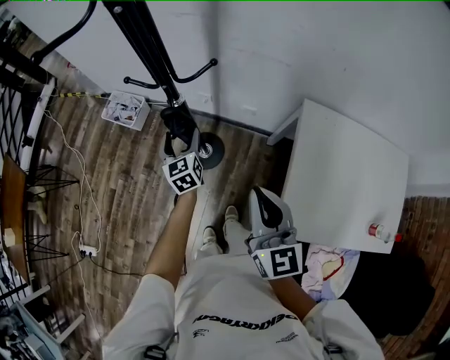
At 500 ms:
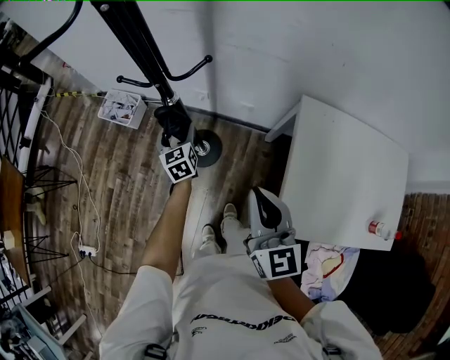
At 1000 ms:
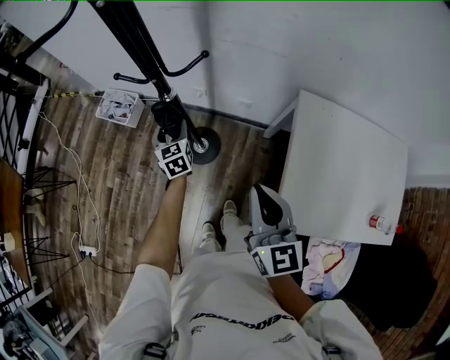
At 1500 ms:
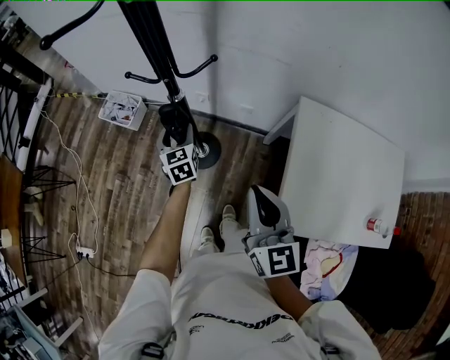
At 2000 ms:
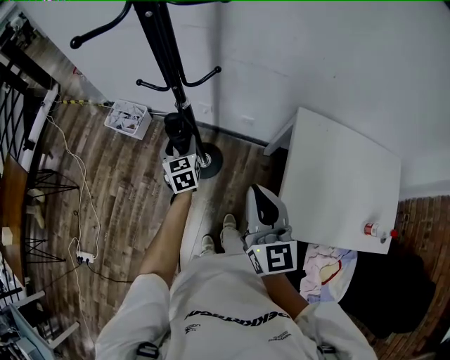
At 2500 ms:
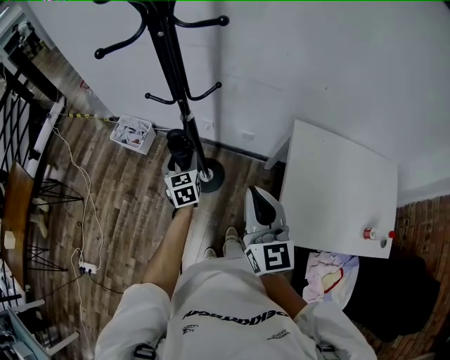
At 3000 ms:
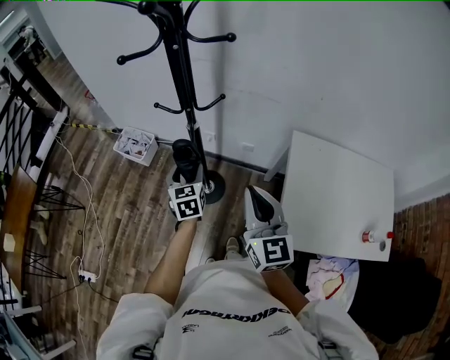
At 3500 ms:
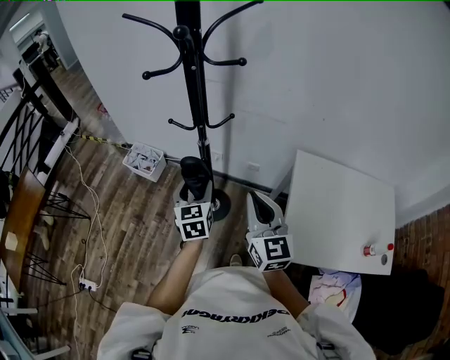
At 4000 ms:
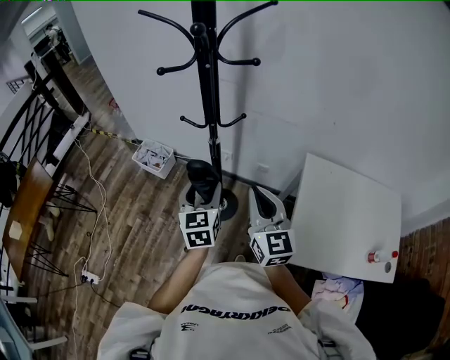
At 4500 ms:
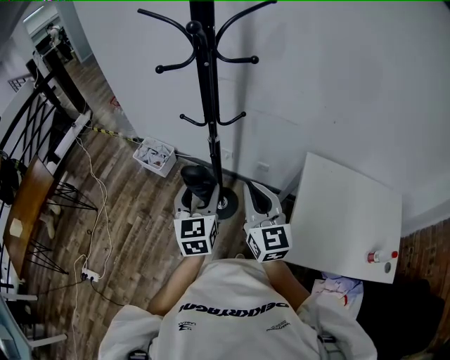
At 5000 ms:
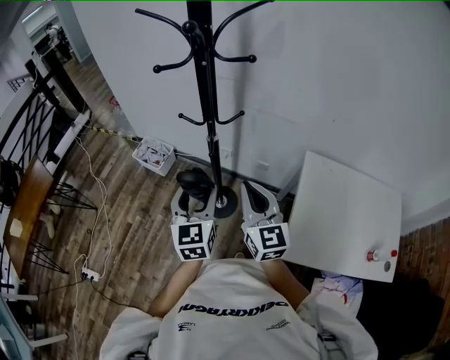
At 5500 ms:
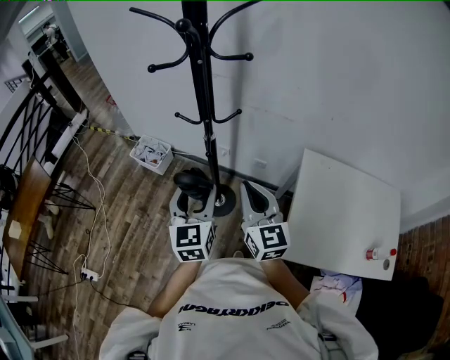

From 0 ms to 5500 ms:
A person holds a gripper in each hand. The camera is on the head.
From 0 ms to 2000 ms: There are only small adjustments of the grippers.
From 2000 ms to 3500 ms: The right gripper heads upward, covering roughly 5 cm; the left gripper shifts roughly 20 cm upward and backward.
From 3500 ms to 5500 ms: The left gripper shifts about 10 cm upward and backward.

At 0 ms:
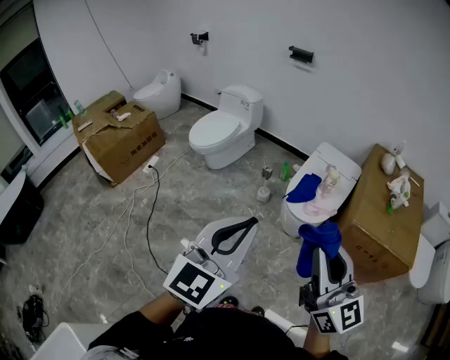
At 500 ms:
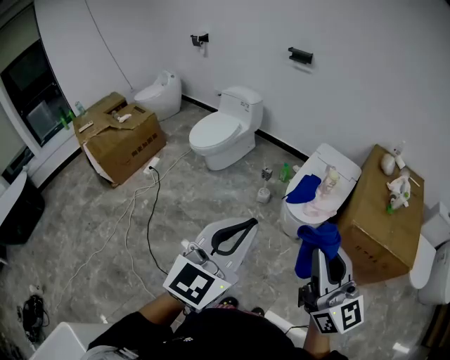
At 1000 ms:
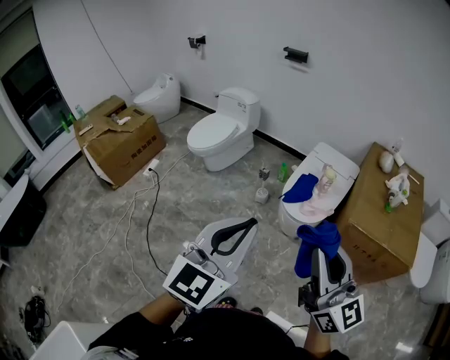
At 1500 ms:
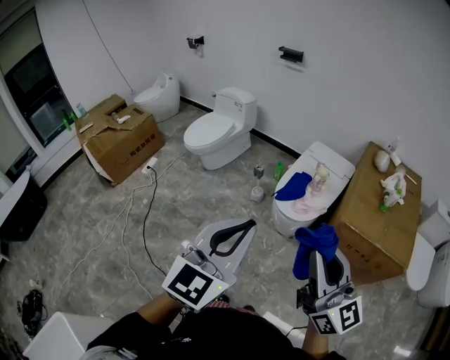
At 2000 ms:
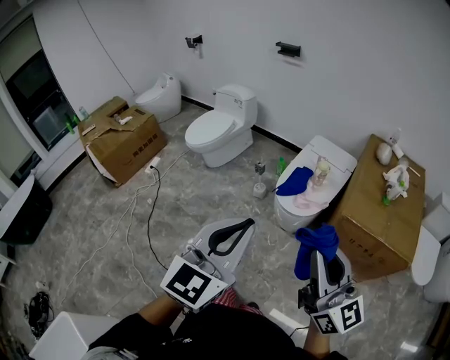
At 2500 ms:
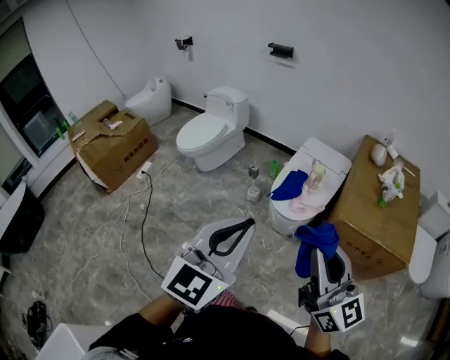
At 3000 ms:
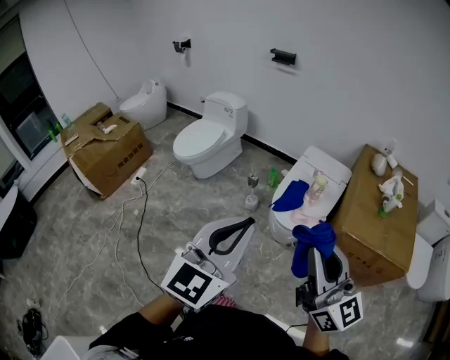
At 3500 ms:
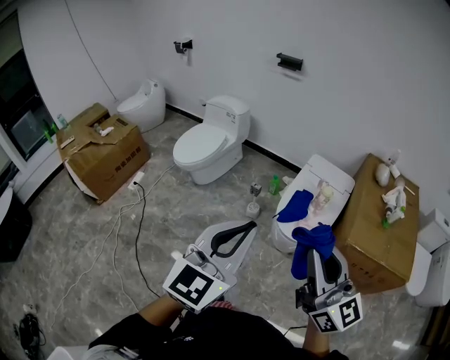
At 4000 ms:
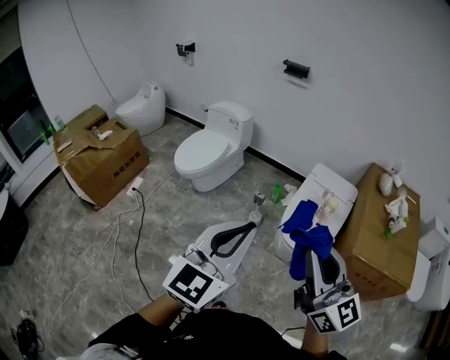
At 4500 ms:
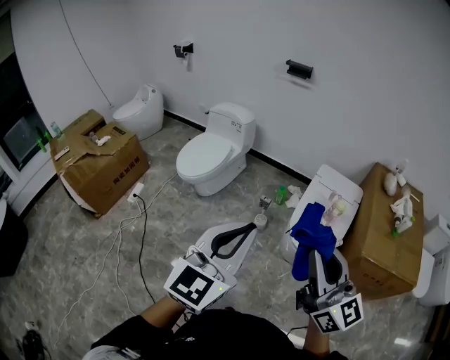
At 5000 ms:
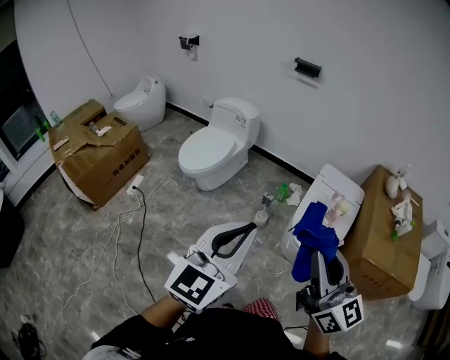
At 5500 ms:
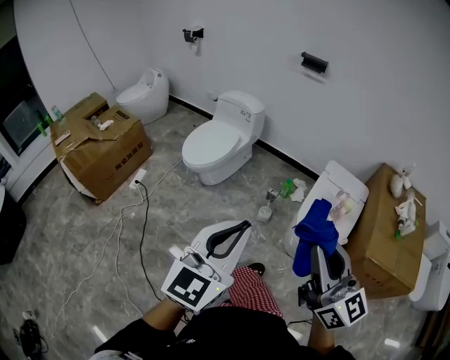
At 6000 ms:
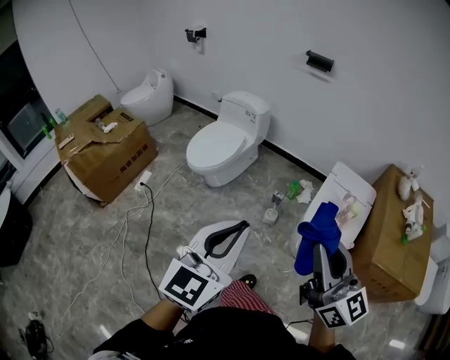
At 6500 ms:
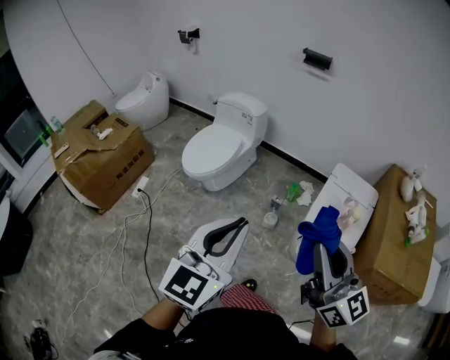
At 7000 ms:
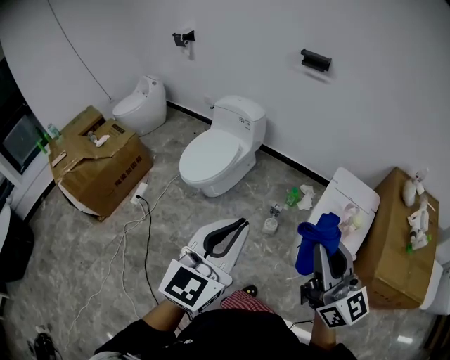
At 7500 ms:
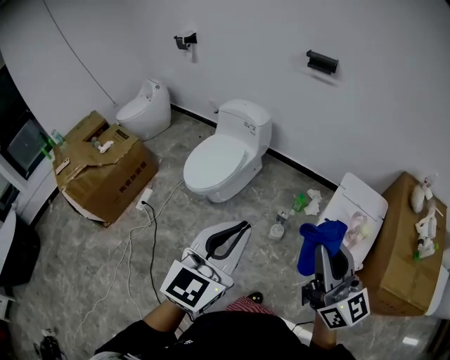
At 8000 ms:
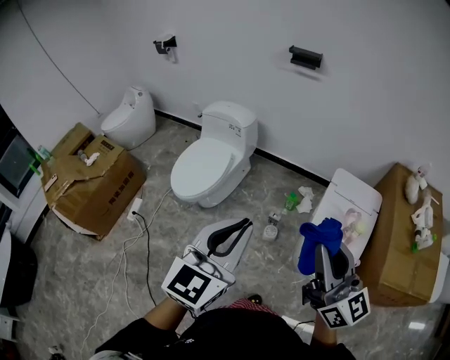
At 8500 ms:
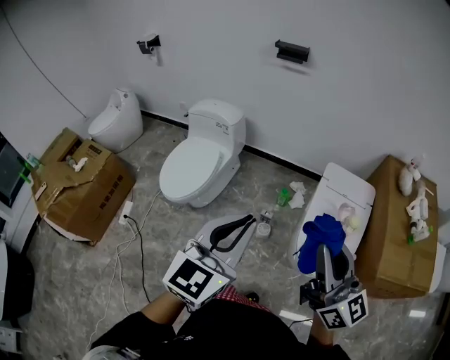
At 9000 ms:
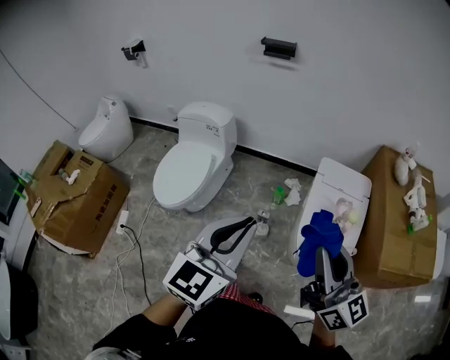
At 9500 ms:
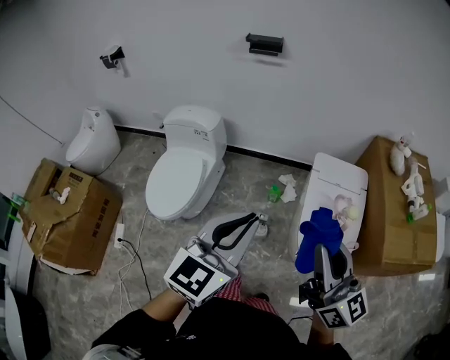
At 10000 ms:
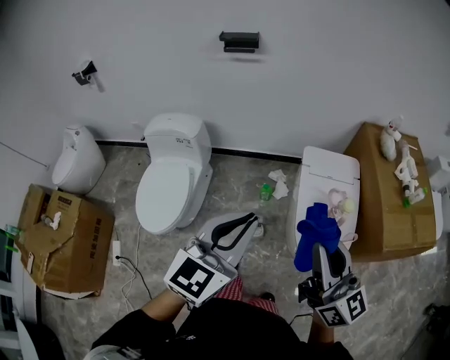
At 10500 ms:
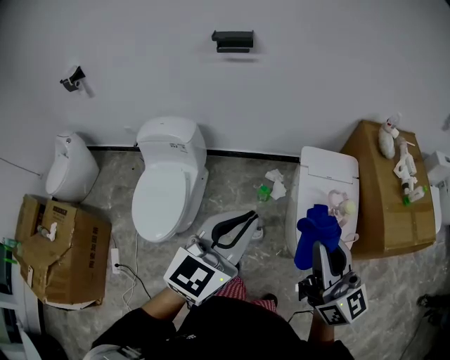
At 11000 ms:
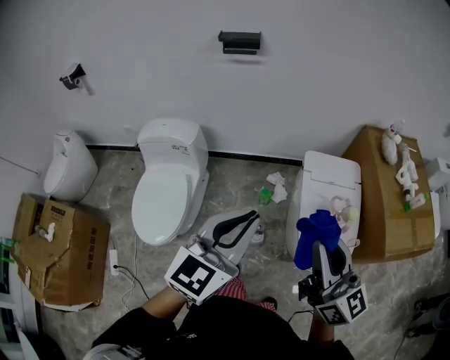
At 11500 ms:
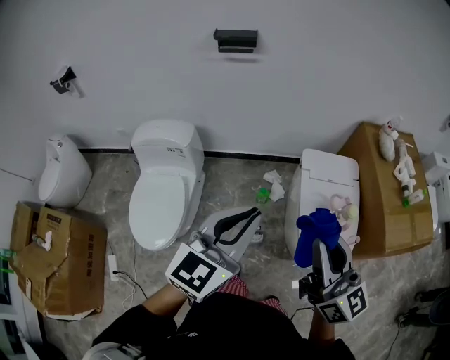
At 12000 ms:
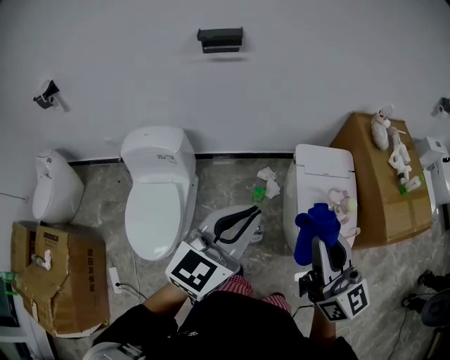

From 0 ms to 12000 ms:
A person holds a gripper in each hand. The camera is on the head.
From 0 ms to 2000 ms: The two grippers go about 10 cm to the right.
From 2000 ms to 4000 ms: The left gripper heads forward and to the left, covering some 25 cm. The right gripper moves to the left and forward, some 25 cm.
From 4000 ms to 6000 ms: Both grippers move to the left and forward, roughly 15 cm.
From 6000 ms to 8000 ms: Both grippers travel together forward, about 20 cm.
From 8000 ms to 10000 ms: The left gripper moves forward, some 15 cm, and changes its angle by roughly 30 degrees; the right gripper moves forward, approximately 10 cm, and changes its angle by roughly 20 degrees.
From 10000 ms to 12000 ms: The grippers both shift forward and to the left by approximately 10 cm.

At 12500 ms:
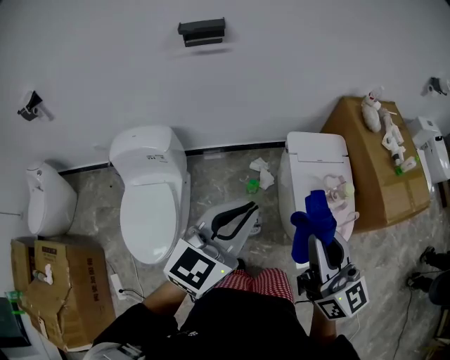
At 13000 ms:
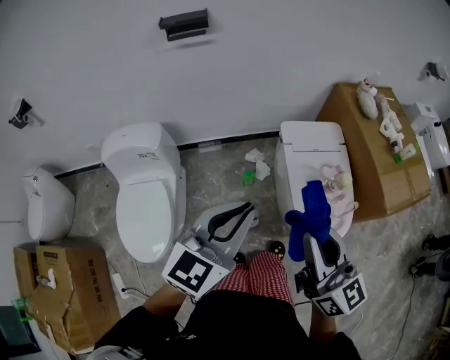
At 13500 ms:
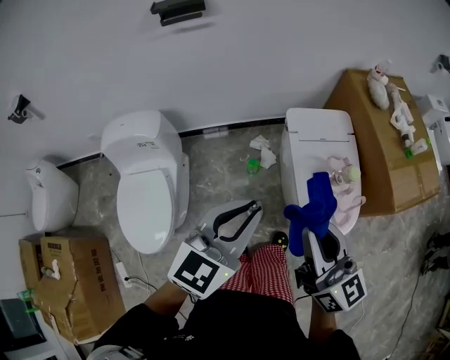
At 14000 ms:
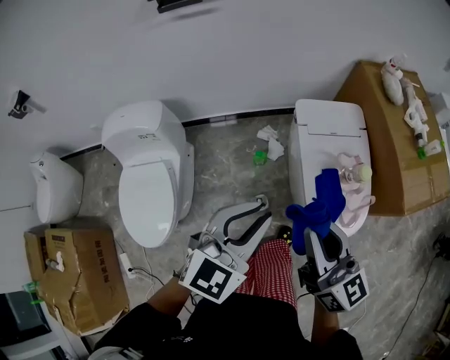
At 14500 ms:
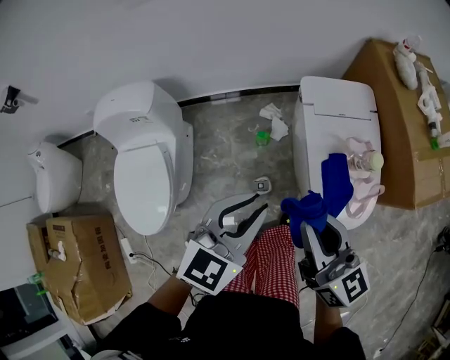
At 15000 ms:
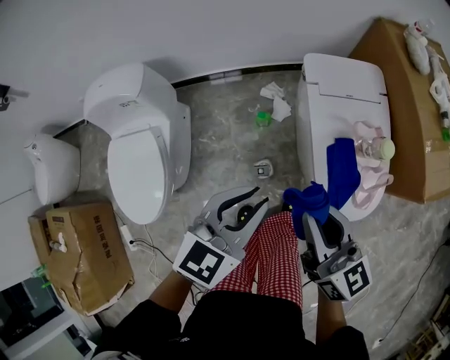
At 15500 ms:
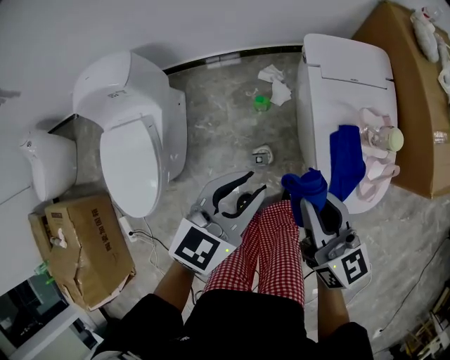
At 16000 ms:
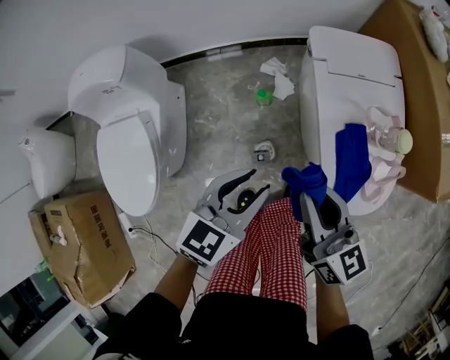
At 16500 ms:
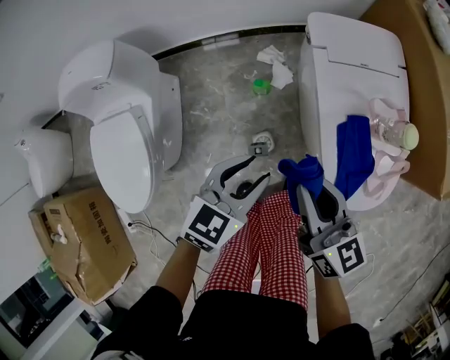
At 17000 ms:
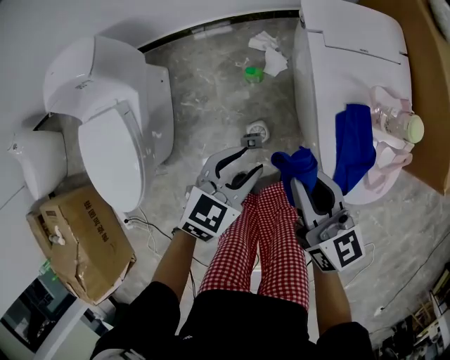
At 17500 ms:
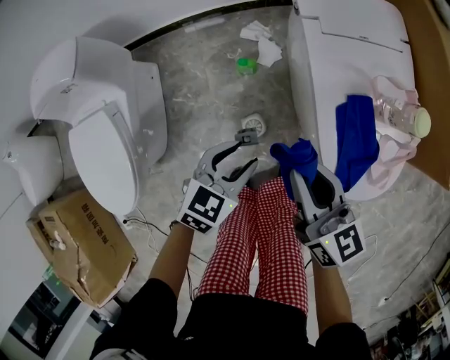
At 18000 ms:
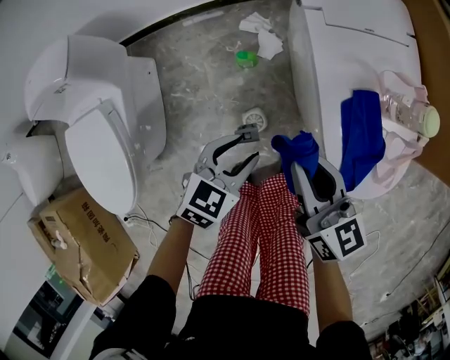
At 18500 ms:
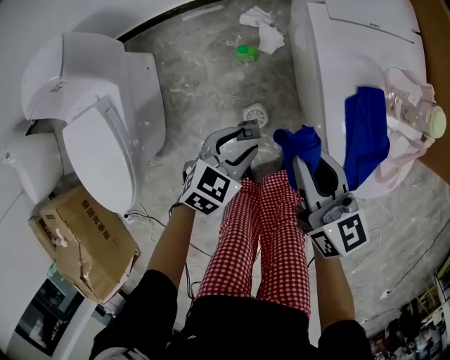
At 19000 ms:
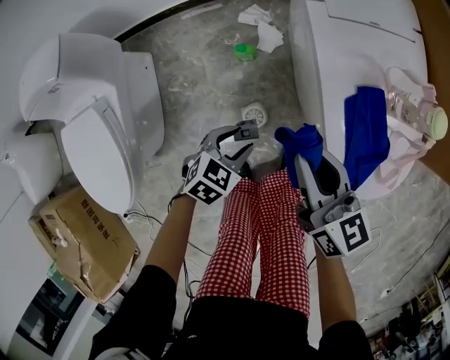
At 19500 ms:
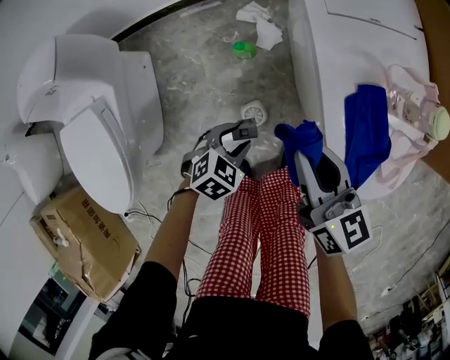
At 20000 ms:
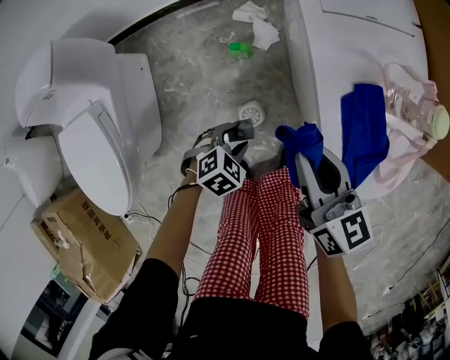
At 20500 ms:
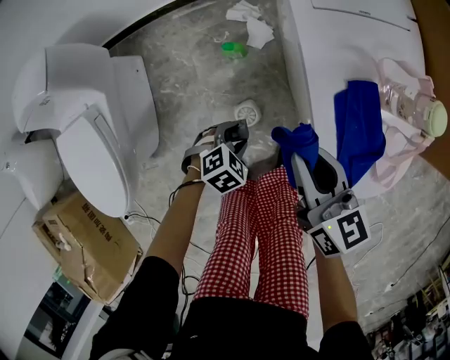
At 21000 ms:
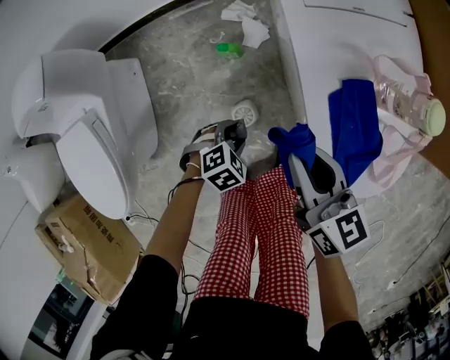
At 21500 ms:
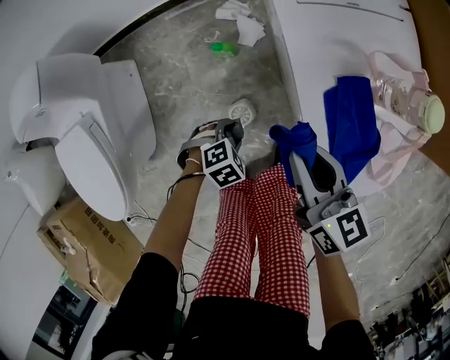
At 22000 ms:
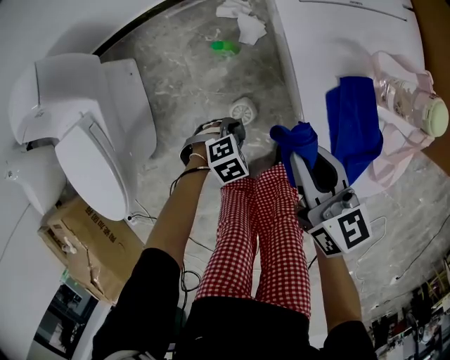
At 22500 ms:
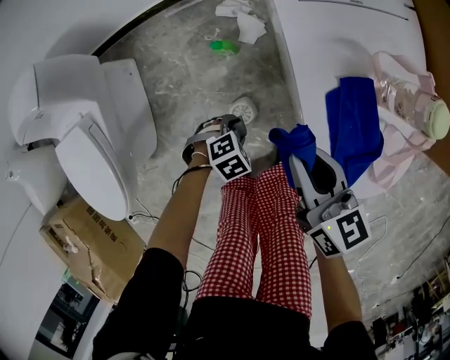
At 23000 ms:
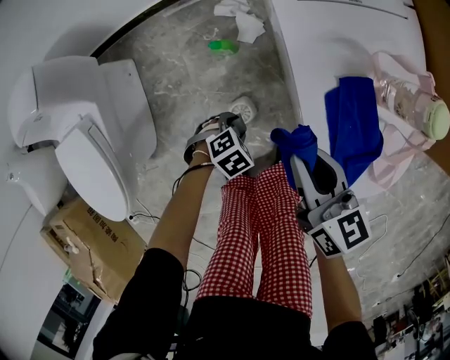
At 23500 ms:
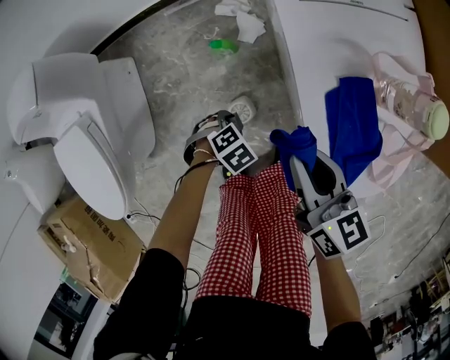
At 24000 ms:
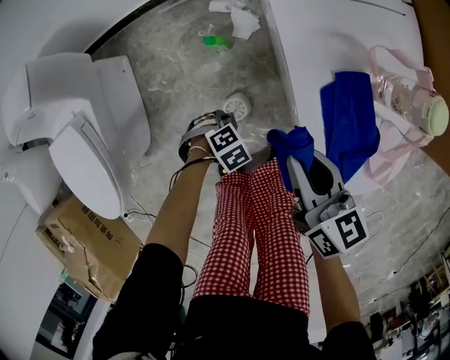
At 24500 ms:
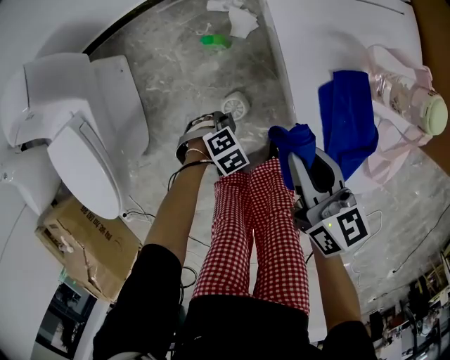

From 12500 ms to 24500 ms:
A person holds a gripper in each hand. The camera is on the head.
From 12500 ms to 14500 ms: The right gripper is displaced downward and forward by roughly 15 cm; the left gripper is displaced downward by some 15 cm.
From 14500 ms to 16500 ms: Both grippers travel together downward, approximately 20 cm. The left gripper opens.
From 16500 ms to 18500 ms: The left gripper goes about 20 cm downward, while the right gripper is displaced downward by about 10 cm.
From 18500 ms to 20500 ms: The left gripper is displaced downward by about 10 cm, and swivels approximately 30 degrees.
From 20500 ms to 22500 ms: The grippers make only small movements.
From 22500 ms to 24500 ms: The grippers stay close to where they were, moving slightly.
